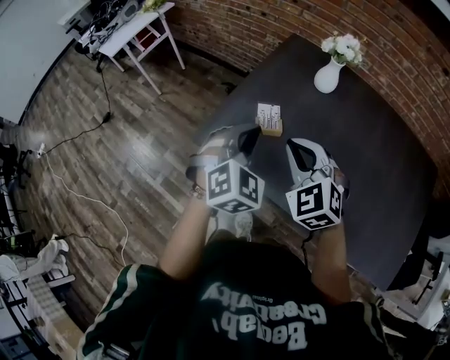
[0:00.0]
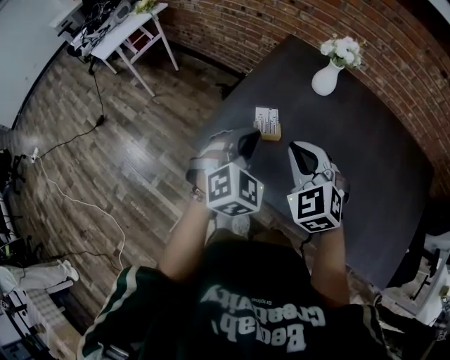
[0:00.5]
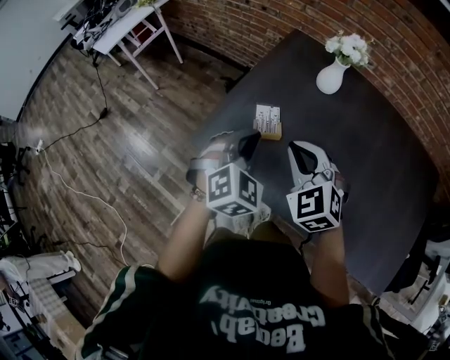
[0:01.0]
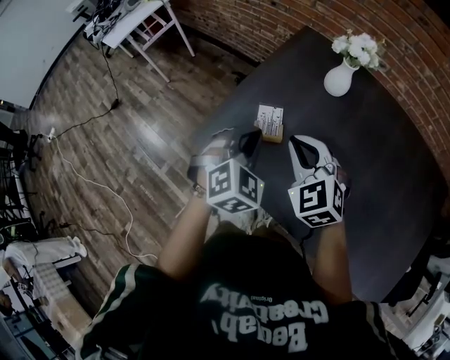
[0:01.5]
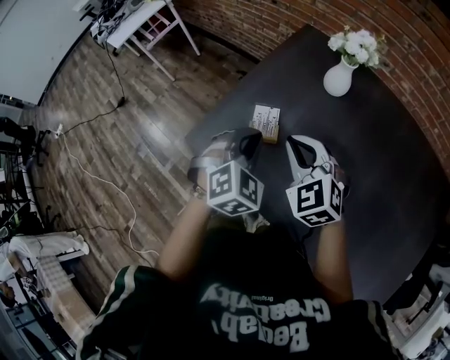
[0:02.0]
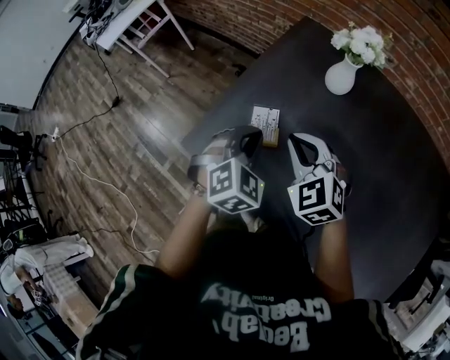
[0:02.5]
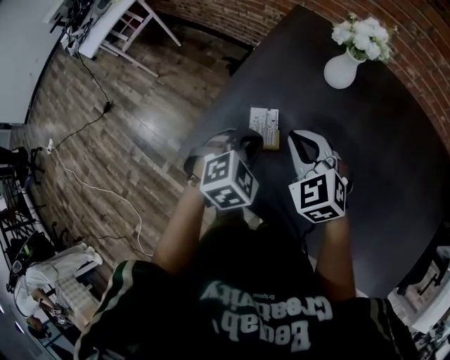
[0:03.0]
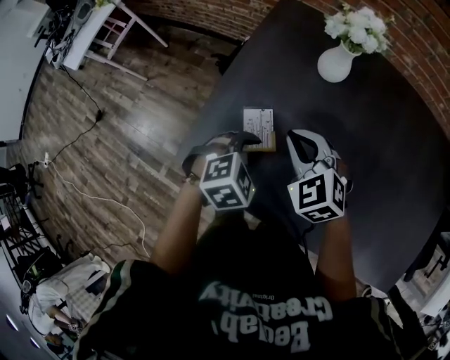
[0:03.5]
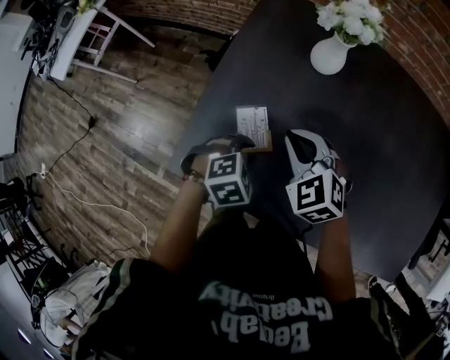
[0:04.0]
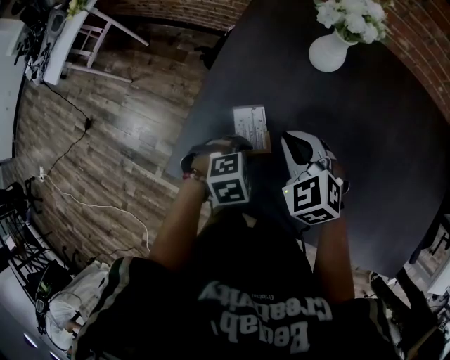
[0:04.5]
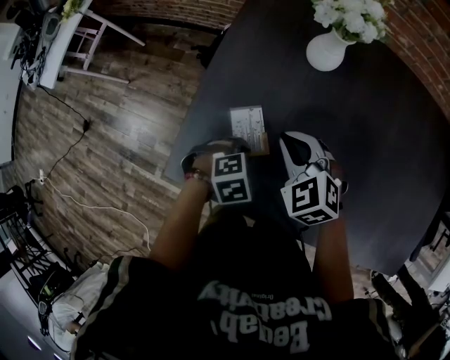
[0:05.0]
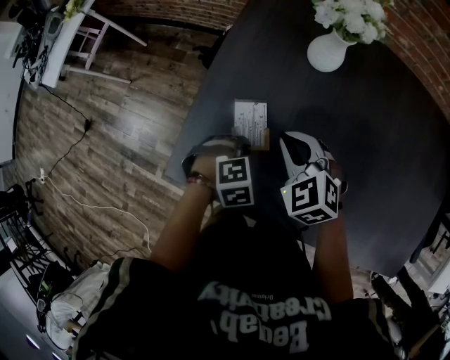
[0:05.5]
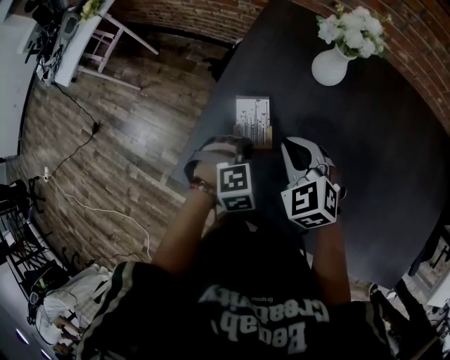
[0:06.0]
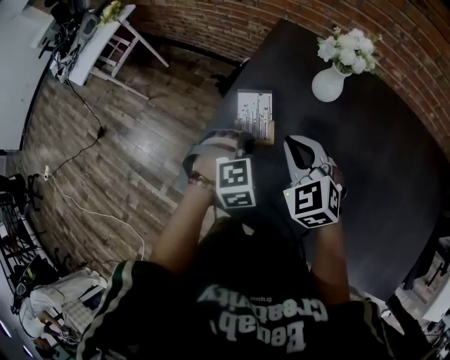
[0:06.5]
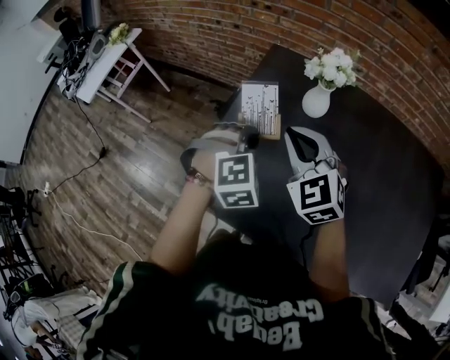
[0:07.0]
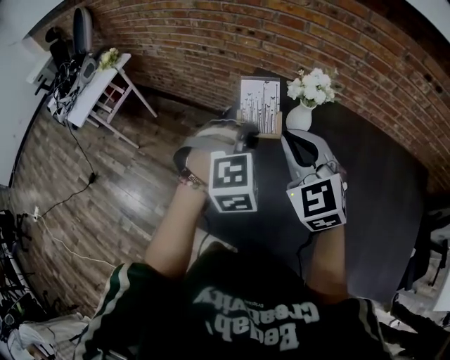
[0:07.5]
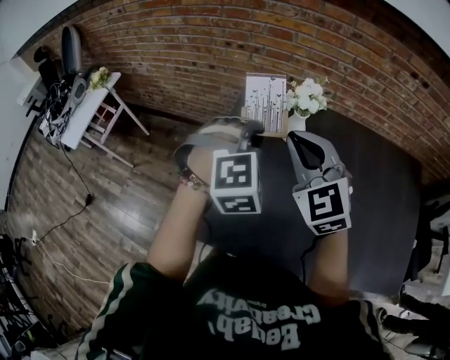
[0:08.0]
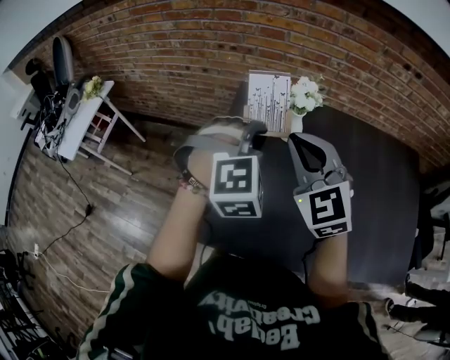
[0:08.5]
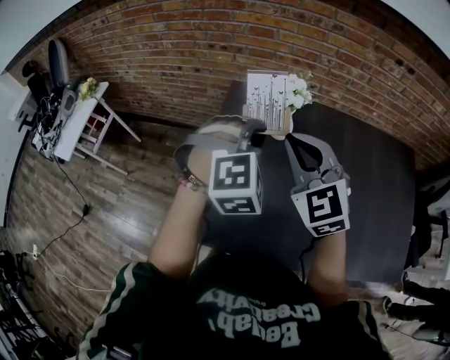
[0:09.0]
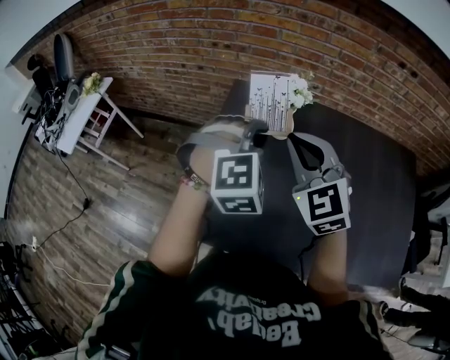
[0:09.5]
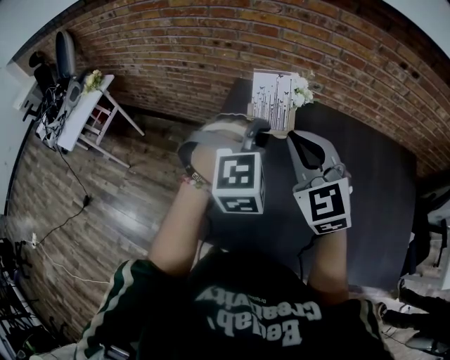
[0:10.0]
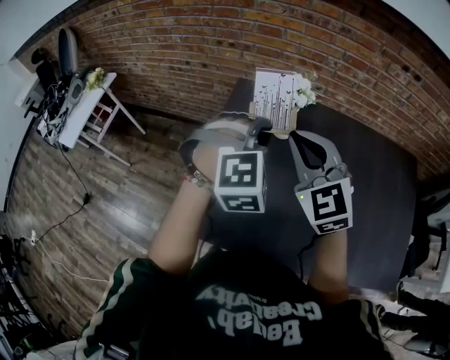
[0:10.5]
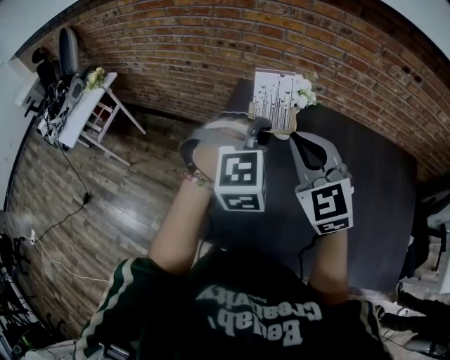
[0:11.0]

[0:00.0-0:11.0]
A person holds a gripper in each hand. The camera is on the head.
0.0 to 2.0 s: The right gripper moves forward, to the right and downward, approximately 15 cm. Meanwhile the left gripper heads to the right, forward and downward, covering some 10 cm.
2.0 to 3.5 s: The left gripper moves downward, about 10 cm, changes its angle by approximately 40 degrees, and opens; the right gripper shifts by about 10 cm.
3.5 to 5.5 s: The left gripper moves downward, roughly 10 cm, and rotates roughly 20 degrees. The right gripper ends up about 5 cm from where it was.
5.5 to 7.5 s: Both grippers move upward, roughly 30 cm. The left gripper tips its fingers upward by some 30 degrees, while the right gripper rotates approximately 30 degrees.
7.5 to 9.0 s: The right gripper shifts by some 5 cm. Meanwhile the left gripper is displaced upward by approximately 5 cm.
9.0 to 11.0 s: Both grippers stay about where they are.

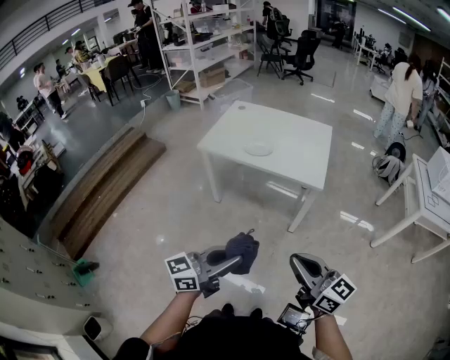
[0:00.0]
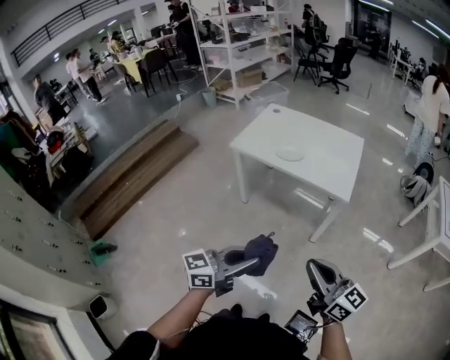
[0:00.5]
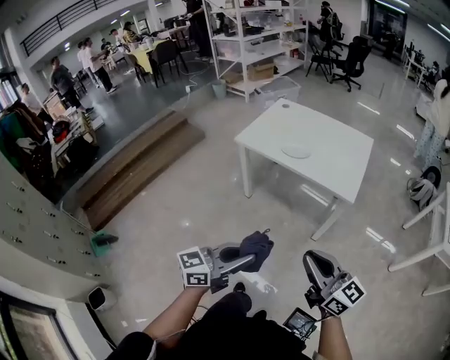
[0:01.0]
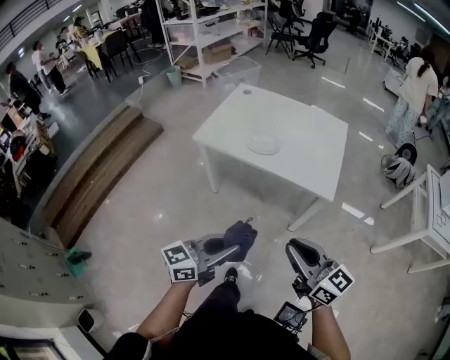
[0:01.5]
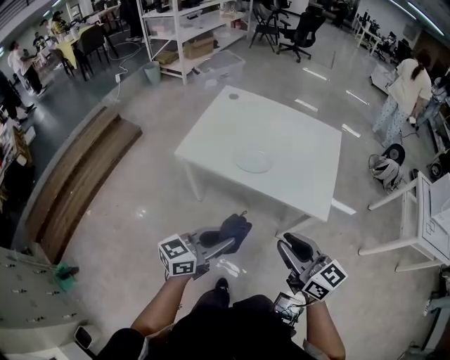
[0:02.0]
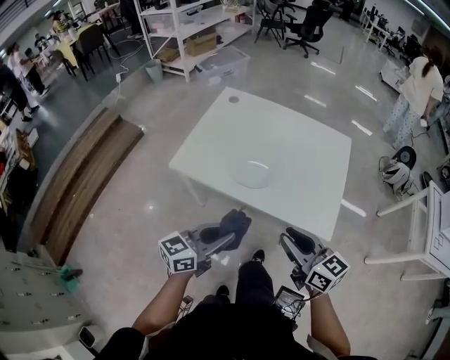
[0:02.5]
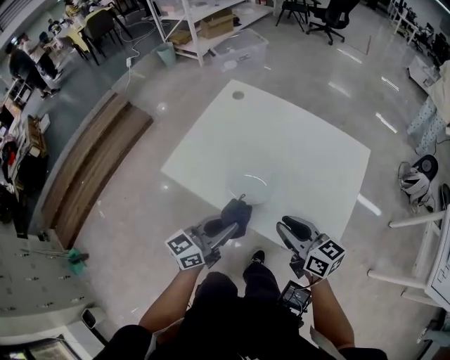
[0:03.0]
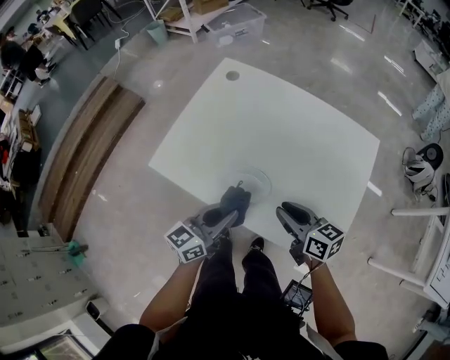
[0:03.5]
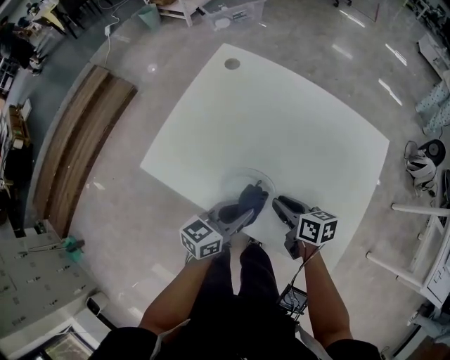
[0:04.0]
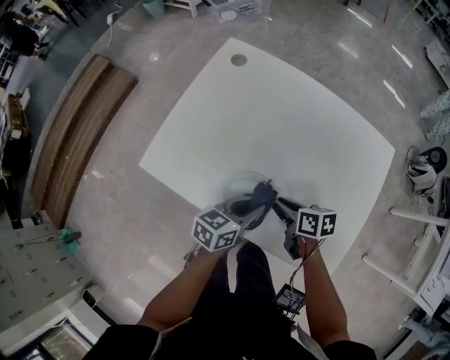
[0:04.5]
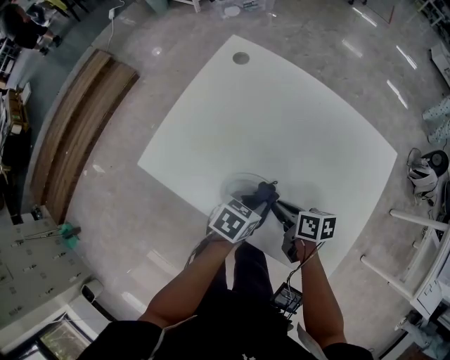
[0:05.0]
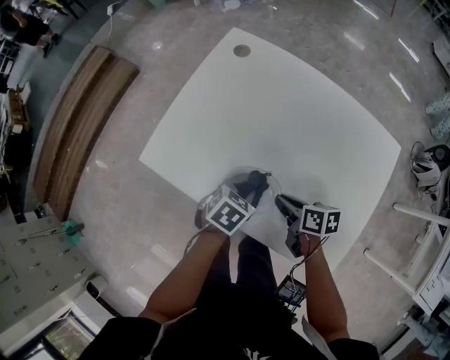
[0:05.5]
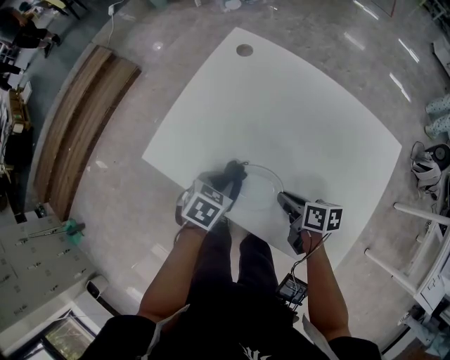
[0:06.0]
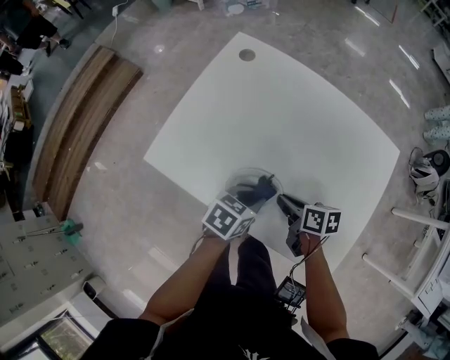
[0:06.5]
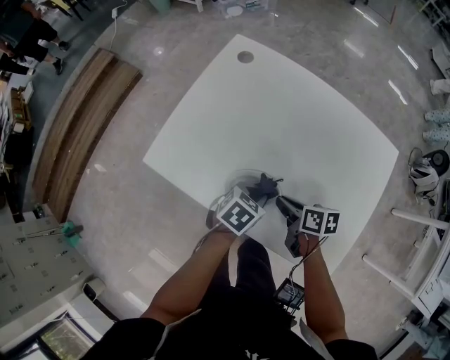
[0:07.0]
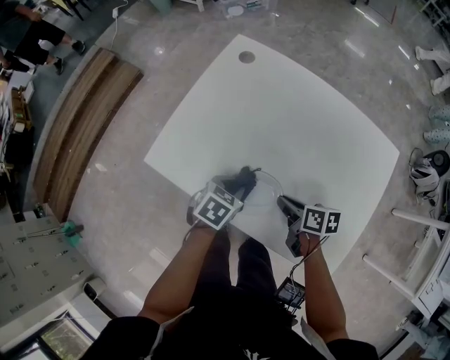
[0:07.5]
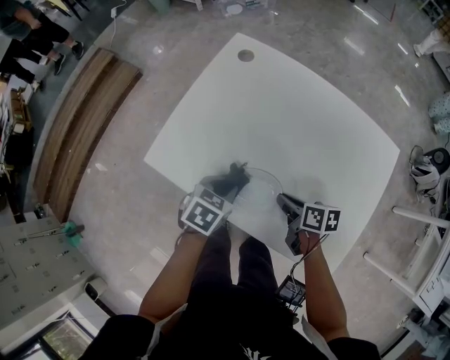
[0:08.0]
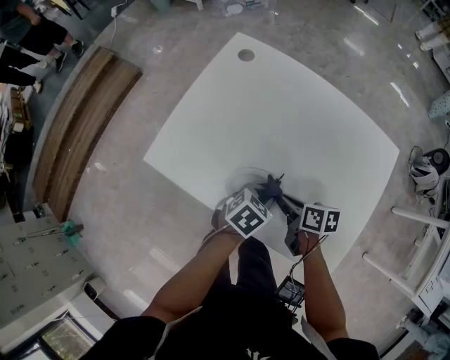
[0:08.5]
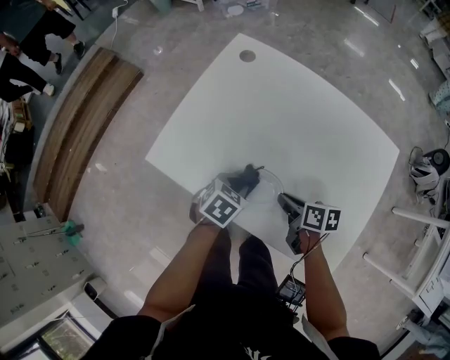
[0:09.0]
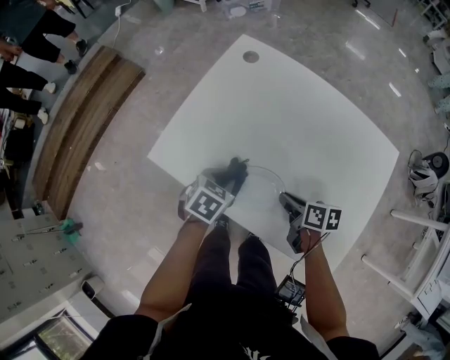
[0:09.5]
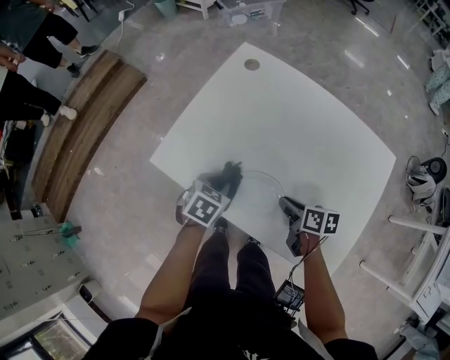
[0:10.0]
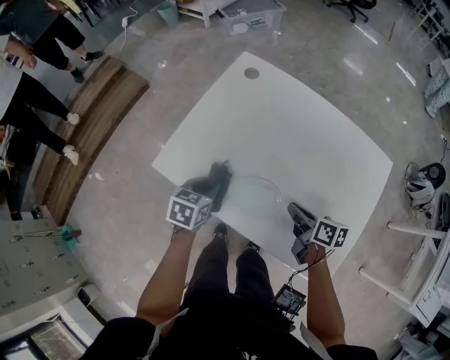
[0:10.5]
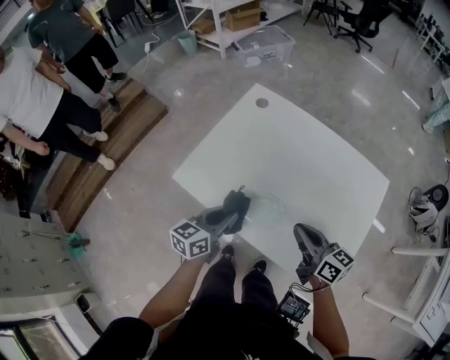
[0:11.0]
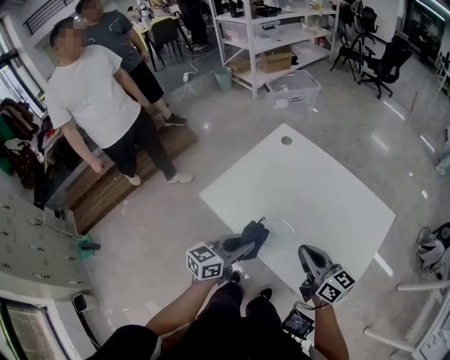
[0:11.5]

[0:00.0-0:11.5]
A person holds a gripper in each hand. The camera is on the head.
0.0 to 2.0 s: Both grippers move forward, approximately 35 cm.
2.0 to 4.0 s: The two grippers travel together, forward, approximately 40 cm. The right gripper is displaced downward by approximately 30 cm, and swivels approximately 40 degrees, while the left gripper moves downward, about 20 cm.
4.0 to 6.0 s: The left gripper goes roughly 15 cm to the left, forward and downward, and points its fingers roughly 50 degrees further downward.
6.0 to 7.5 s: The left gripper travels to the right and back again, roughly 10 cm each way.
7.5 to 9.5 s: The left gripper goes to the right and returns, some 10 cm each way.
9.5 to 11.5 s: The right gripper goes approximately 25 cm upward, and tilts its fingers some 40 degrees upward. The left gripper goes some 25 cm upward and backward, and points its fingers roughly 50 degrees further upward.

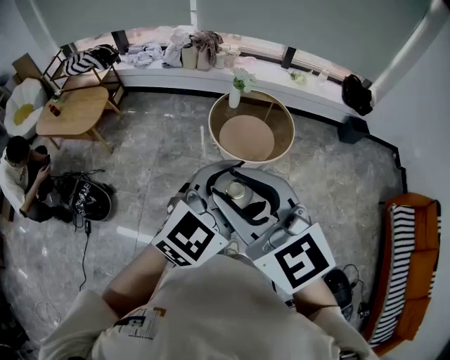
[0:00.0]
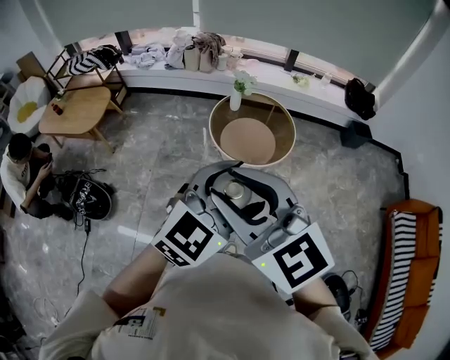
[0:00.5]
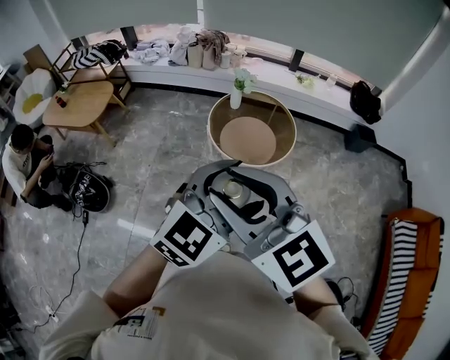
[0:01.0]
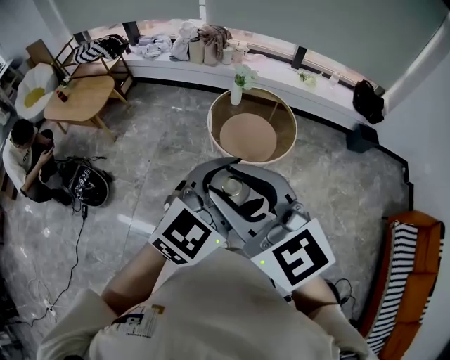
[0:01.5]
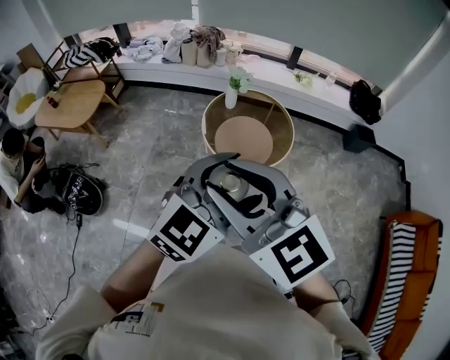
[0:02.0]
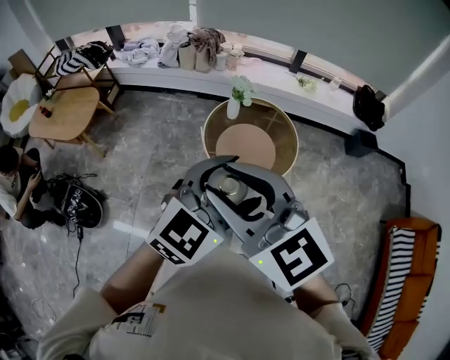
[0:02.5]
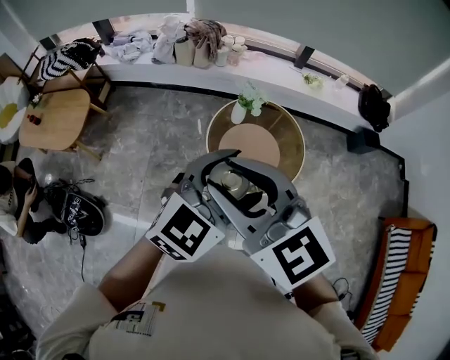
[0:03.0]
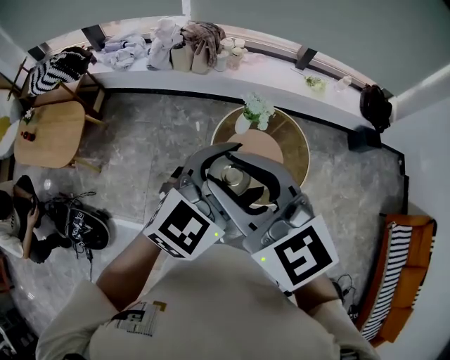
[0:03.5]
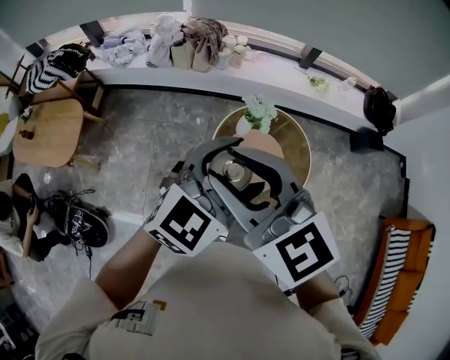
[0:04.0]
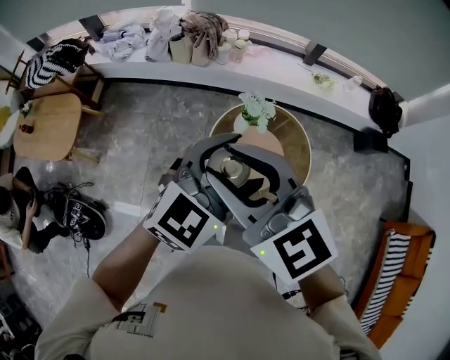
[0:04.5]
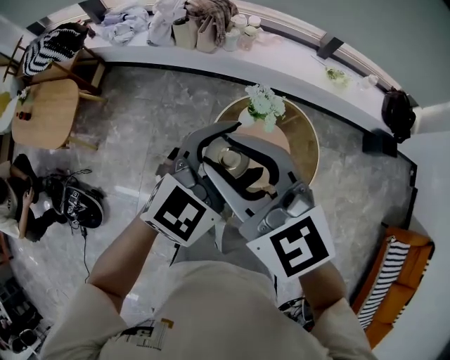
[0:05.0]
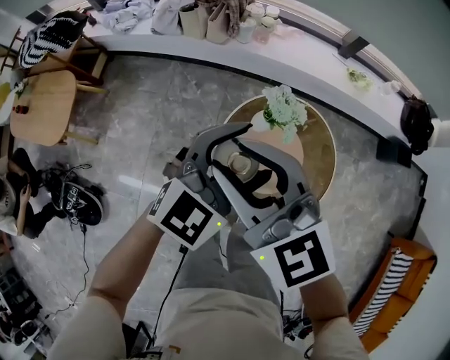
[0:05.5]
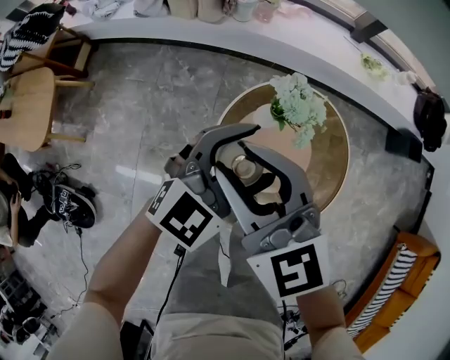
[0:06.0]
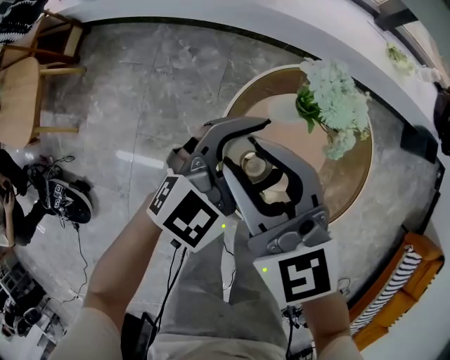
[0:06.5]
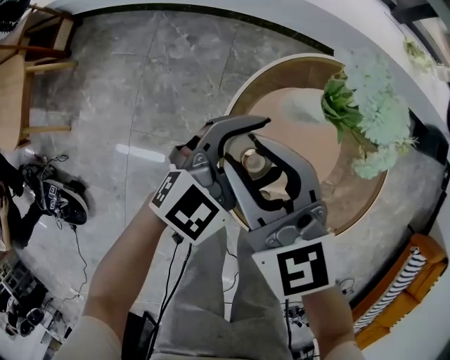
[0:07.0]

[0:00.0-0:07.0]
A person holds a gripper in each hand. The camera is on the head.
0.0 to 2.0 s: The right gripper moves to the right and forward, about 10 cm, while the left gripper moves forward and to the right, approximately 10 cm.
2.0 to 3.5 s: The two grippers travel together, forward and to the left, approximately 40 cm.
3.5 to 5.0 s: Both grippers travel together forward and downward, approximately 15 cm.
5.0 to 7.0 s: Both grippers move downward, about 50 cm.
